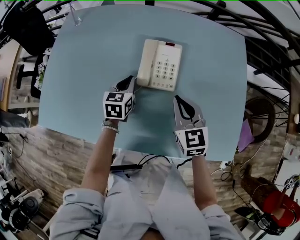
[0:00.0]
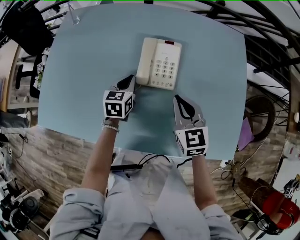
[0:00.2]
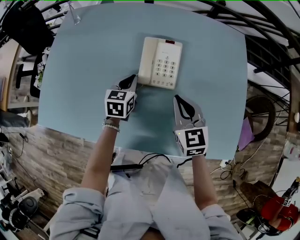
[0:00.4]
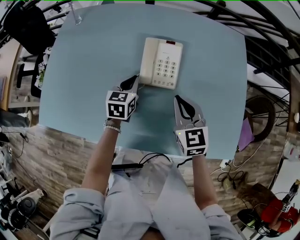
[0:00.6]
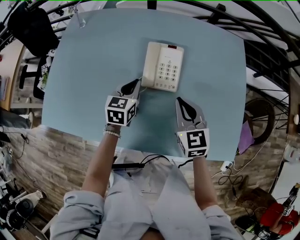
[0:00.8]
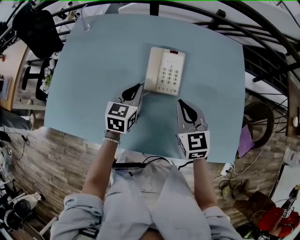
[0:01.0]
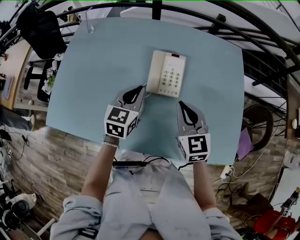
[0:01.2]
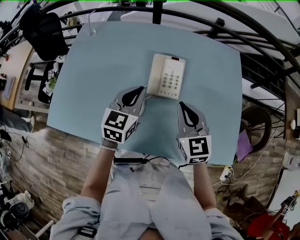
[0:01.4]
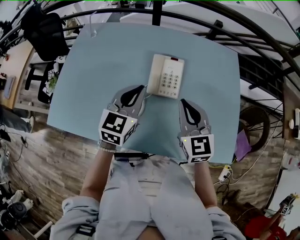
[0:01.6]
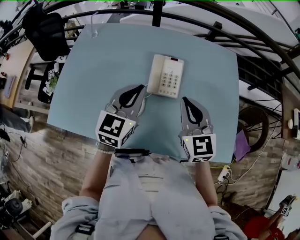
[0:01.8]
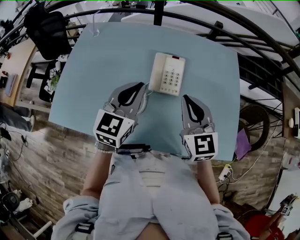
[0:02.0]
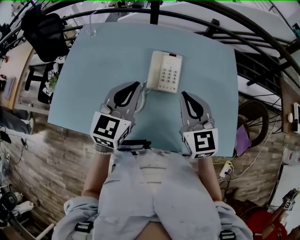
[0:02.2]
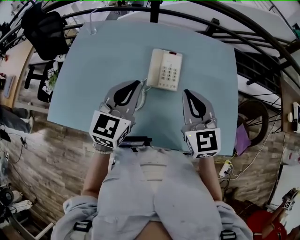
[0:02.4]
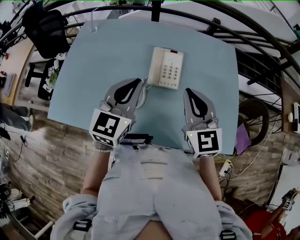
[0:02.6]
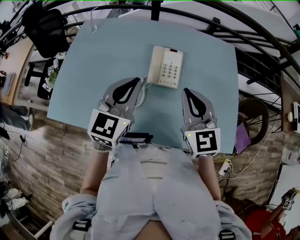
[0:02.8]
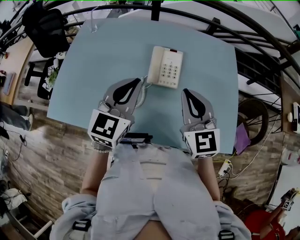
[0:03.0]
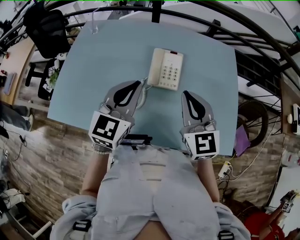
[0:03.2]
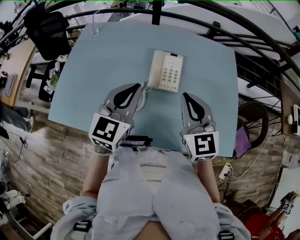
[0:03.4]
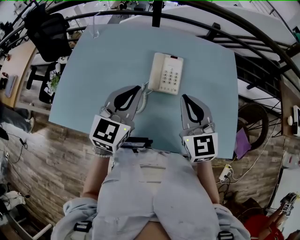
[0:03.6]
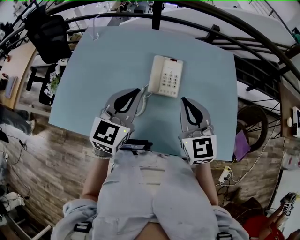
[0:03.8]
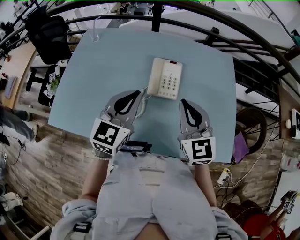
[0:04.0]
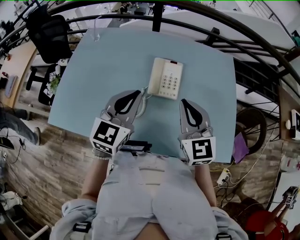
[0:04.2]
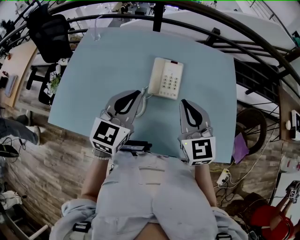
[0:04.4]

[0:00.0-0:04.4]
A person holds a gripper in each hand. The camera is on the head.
0:00.0 to 0:01.4: The right gripper shifts about 10 cm upward. The left gripper travels upward by about 15 cm.
0:01.4 to 0:03.0: The right gripper travels upward by approximately 10 cm, while the left gripper travels upward and backward by approximately 10 cm.
0:03.0 to 0:04.4: Both grippers stay put.

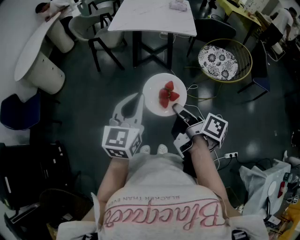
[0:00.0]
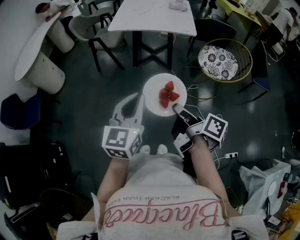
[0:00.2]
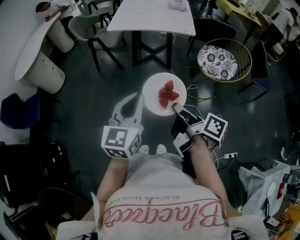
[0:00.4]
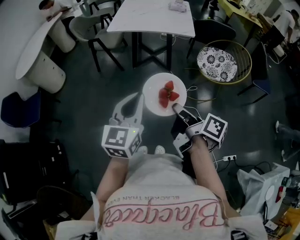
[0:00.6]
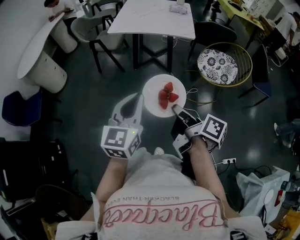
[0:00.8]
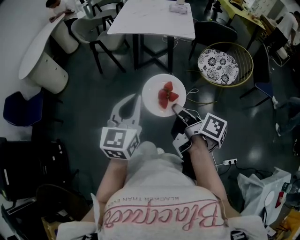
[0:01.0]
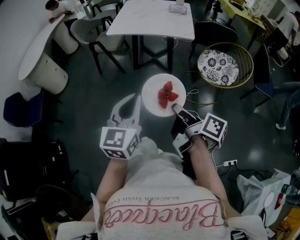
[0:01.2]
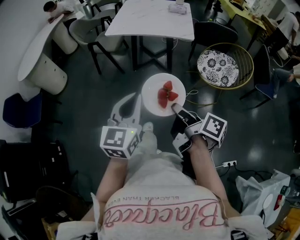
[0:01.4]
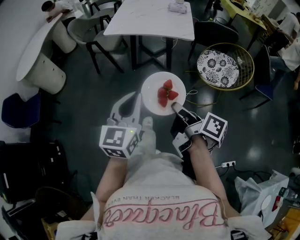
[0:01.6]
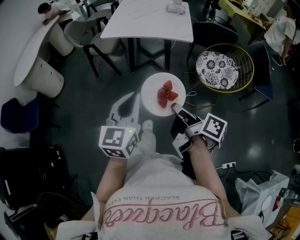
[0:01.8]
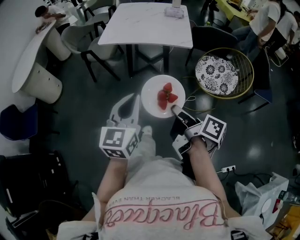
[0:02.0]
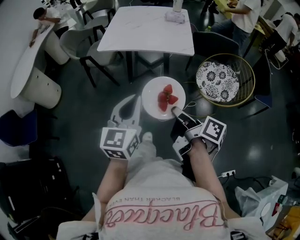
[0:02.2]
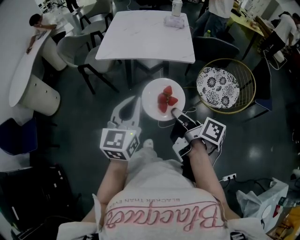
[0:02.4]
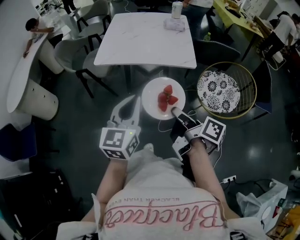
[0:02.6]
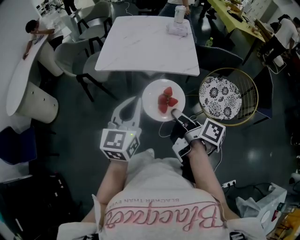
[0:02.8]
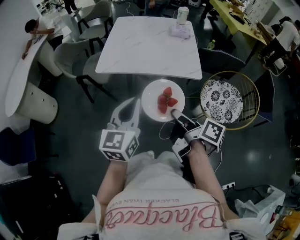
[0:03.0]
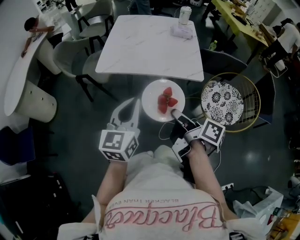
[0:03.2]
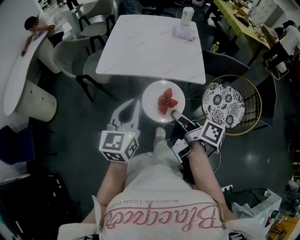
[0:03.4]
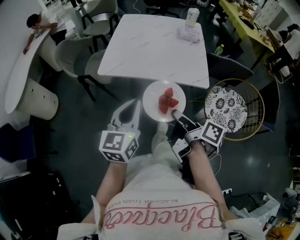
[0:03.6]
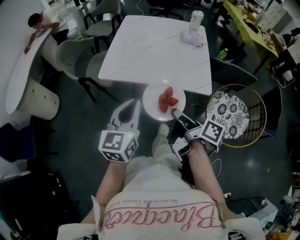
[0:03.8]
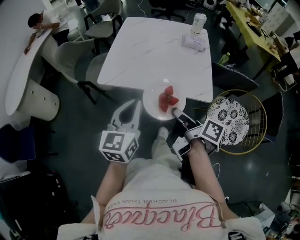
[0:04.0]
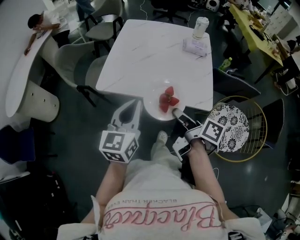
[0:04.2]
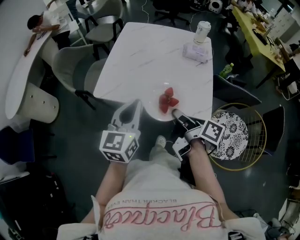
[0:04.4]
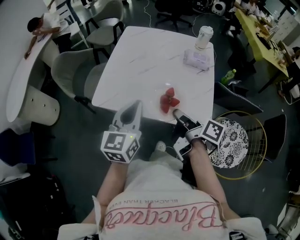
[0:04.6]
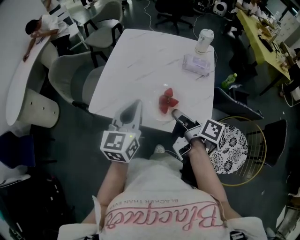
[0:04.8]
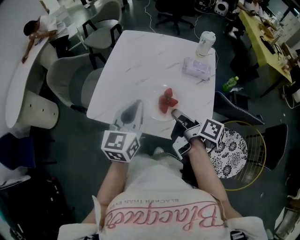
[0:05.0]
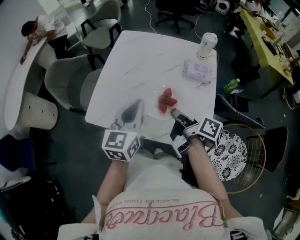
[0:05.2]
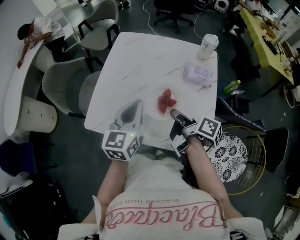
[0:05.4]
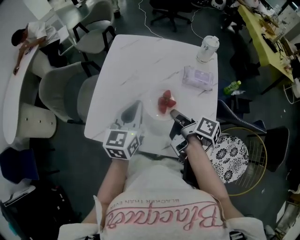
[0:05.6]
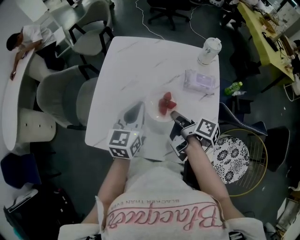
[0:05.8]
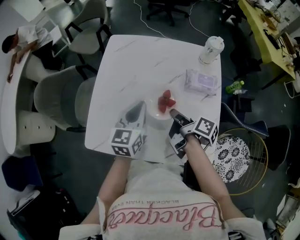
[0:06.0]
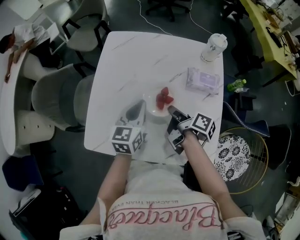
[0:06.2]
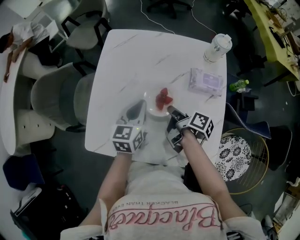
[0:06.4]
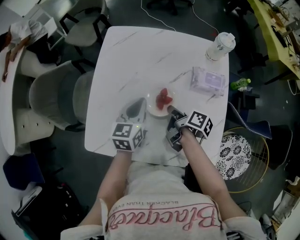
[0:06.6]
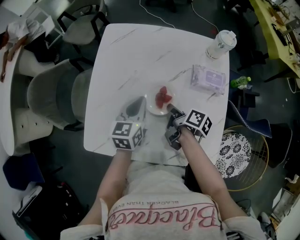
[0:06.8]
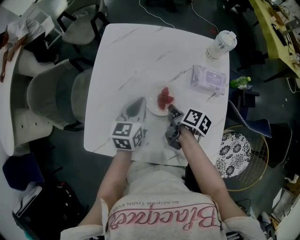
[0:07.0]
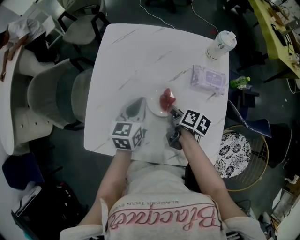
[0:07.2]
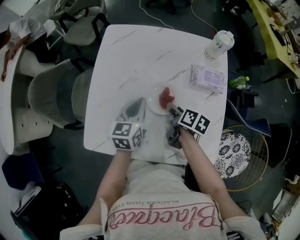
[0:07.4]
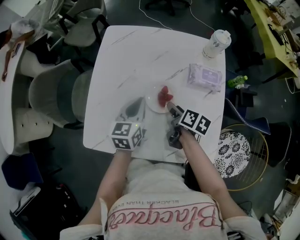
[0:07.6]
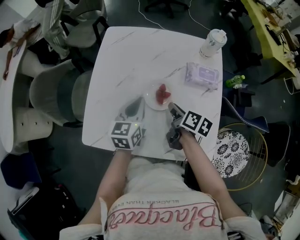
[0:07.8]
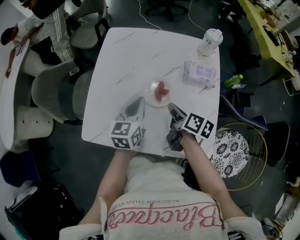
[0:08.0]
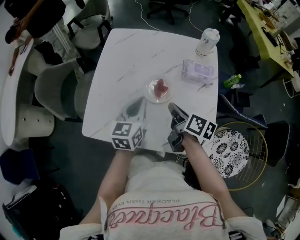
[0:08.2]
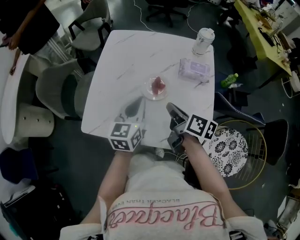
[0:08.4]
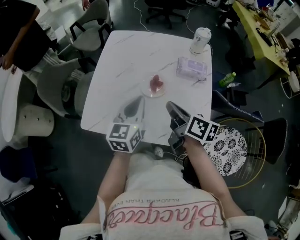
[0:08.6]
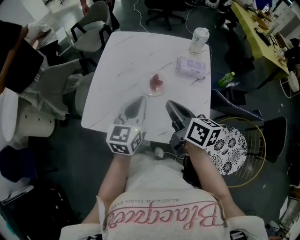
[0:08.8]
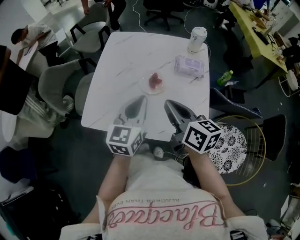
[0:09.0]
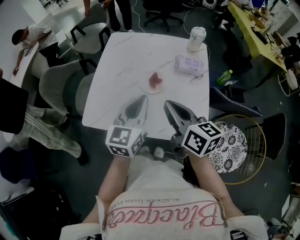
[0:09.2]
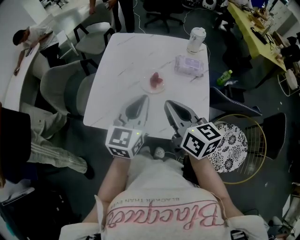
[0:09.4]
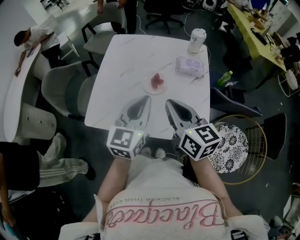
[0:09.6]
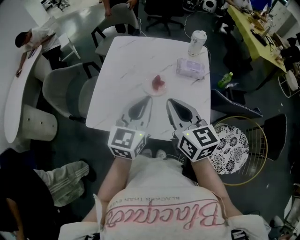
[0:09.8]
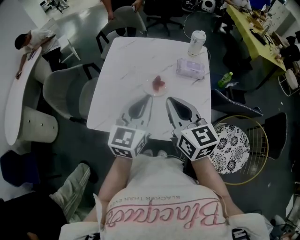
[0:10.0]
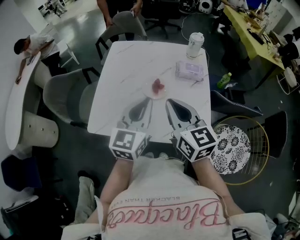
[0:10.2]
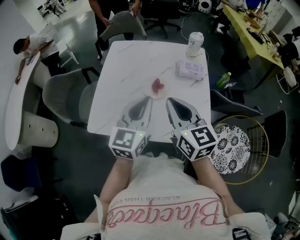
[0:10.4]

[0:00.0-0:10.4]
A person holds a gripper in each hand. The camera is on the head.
0:00.0 to 0:01.4: The left gripper shifts by about 10 cm.
0:01.4 to 0:03.0: The left gripper moves approximately 35 cm.
0:03.0 to 0:04.4: The left gripper changes place by about 25 cm.
0:04.4 to 0:06.0: The left gripper moves about 35 cm.
0:06.0 to 0:07.4: The left gripper travels downward by about 5 cm.
0:07.4 to 0:09.0: The left gripper ends up approximately 25 cm from where it was.

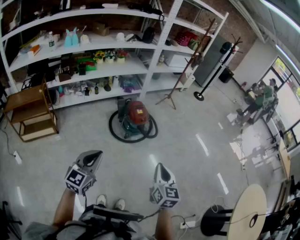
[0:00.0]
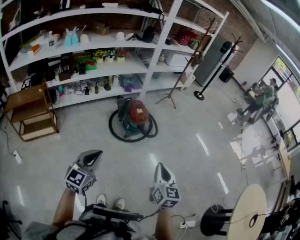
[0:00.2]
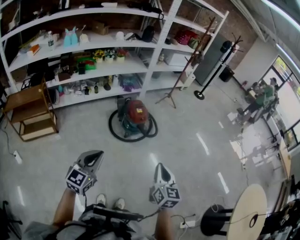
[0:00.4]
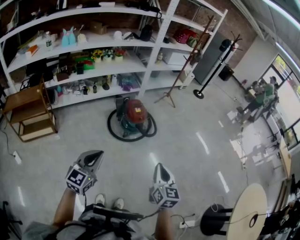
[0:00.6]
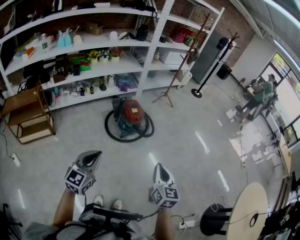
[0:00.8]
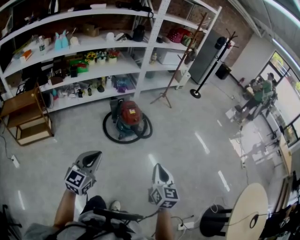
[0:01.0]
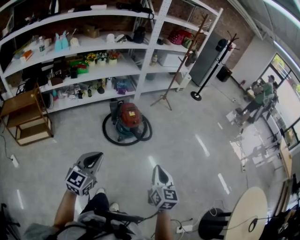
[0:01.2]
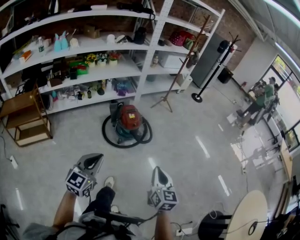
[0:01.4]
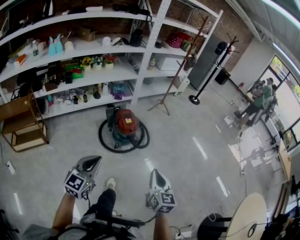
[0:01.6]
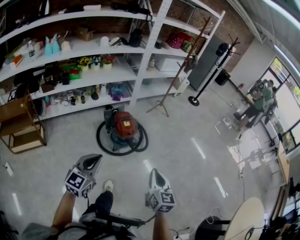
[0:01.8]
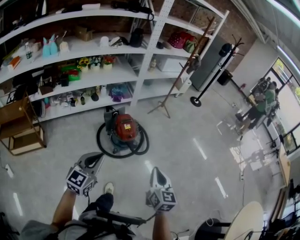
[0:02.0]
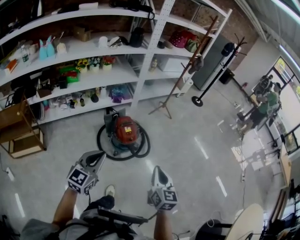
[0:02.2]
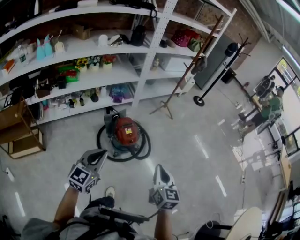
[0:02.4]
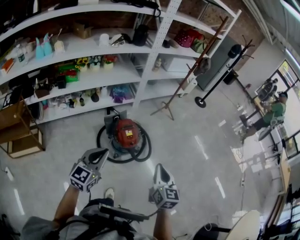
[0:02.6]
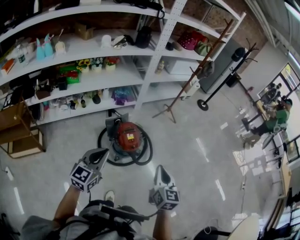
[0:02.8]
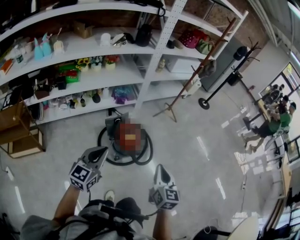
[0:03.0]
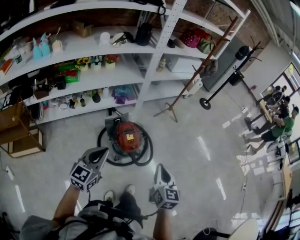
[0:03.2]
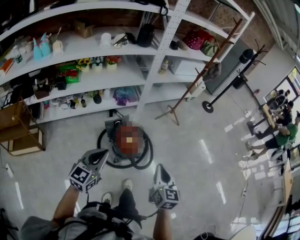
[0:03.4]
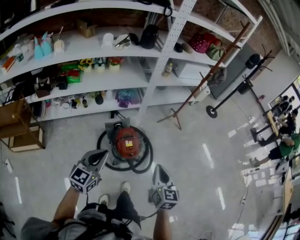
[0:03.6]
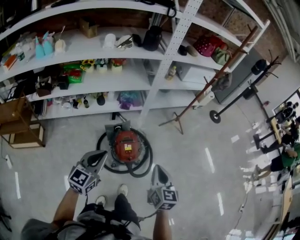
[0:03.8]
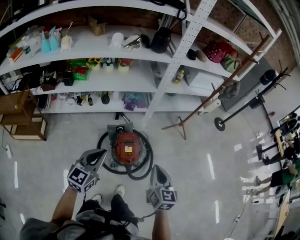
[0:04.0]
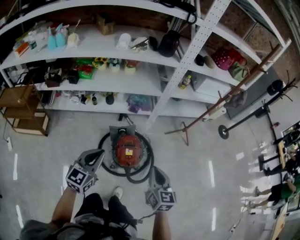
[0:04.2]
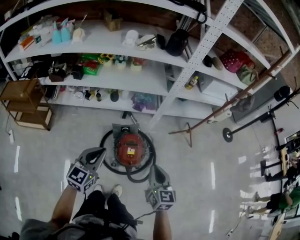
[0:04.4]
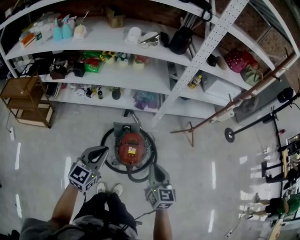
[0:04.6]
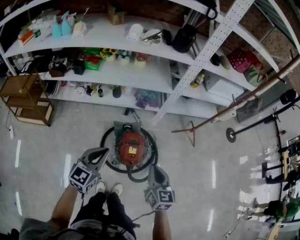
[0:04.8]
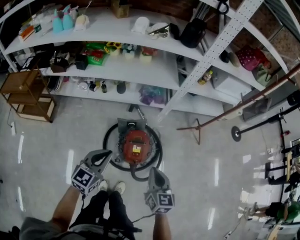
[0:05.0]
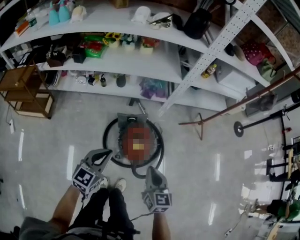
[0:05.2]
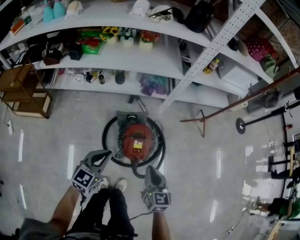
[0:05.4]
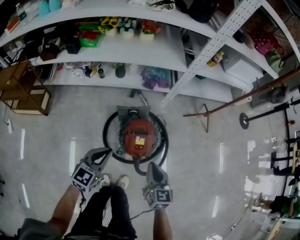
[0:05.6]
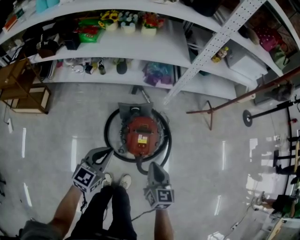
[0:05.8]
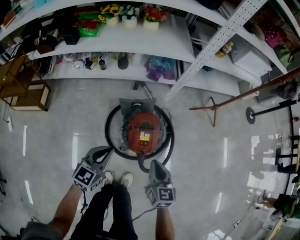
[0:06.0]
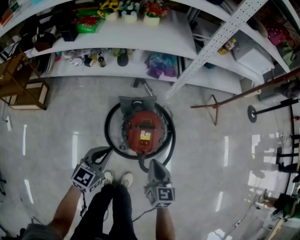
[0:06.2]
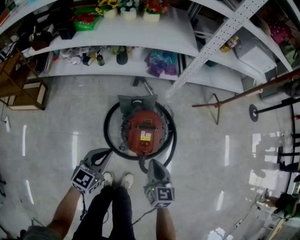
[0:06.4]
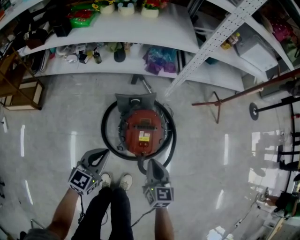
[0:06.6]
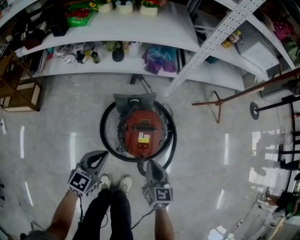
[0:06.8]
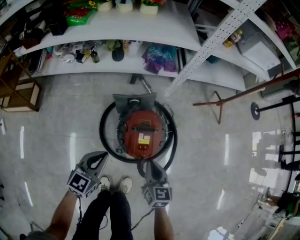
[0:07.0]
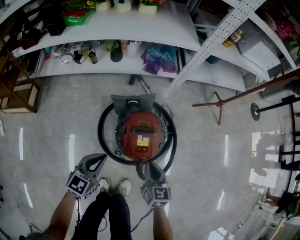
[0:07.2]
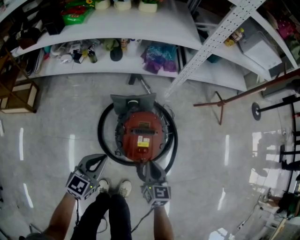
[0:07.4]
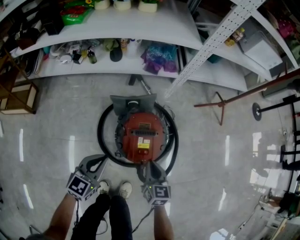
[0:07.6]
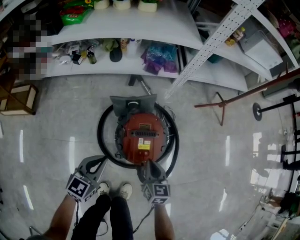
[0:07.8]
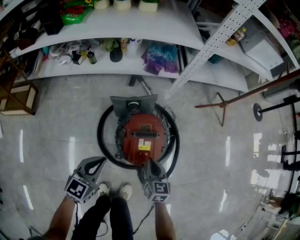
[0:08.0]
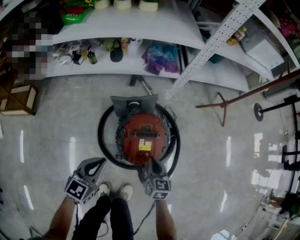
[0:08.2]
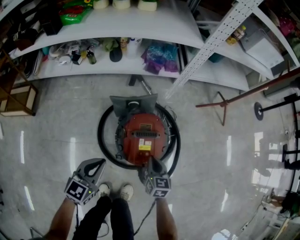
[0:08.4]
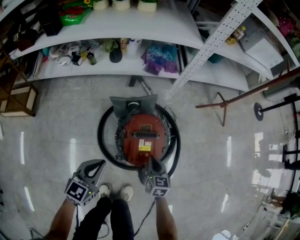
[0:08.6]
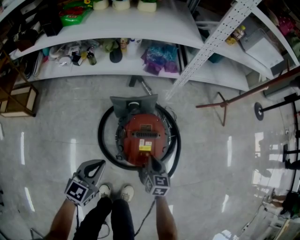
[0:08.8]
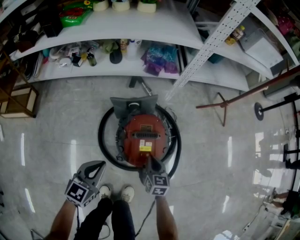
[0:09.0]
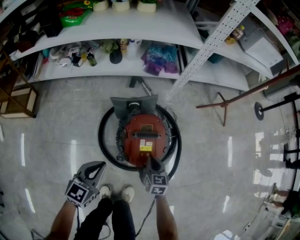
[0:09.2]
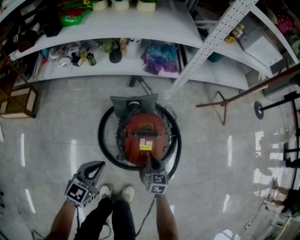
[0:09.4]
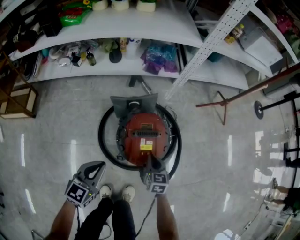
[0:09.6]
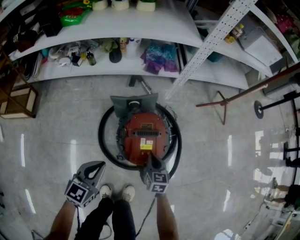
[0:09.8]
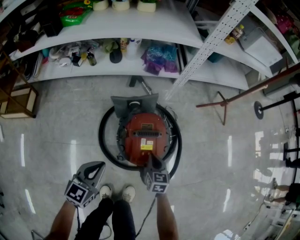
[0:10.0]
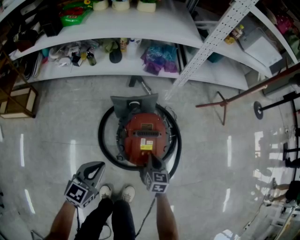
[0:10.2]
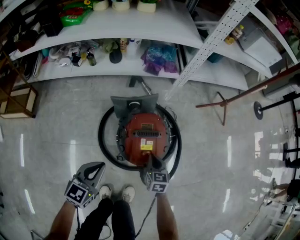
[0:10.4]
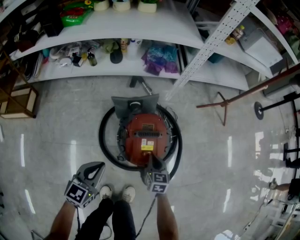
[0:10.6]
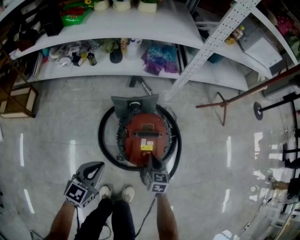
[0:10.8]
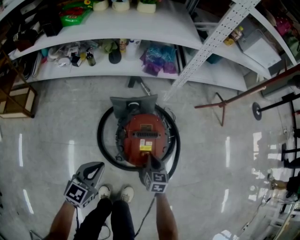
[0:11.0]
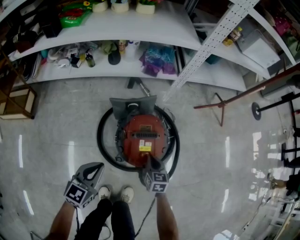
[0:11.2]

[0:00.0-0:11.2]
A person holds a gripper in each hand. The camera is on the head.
0:00.0 to 0:01.6: Both grippers move forward and to the right, roughly 15 cm.
0:01.6 to 0:03.2: The two grippers go some 35 cm forward.
0:03.2 to 0:04.8: Both grippers move forward, roughly 20 cm. The right gripper swivels roughly 30 degrees.
0:04.8 to 0:06.4: Both grippers move downward, approximately 30 cm.
0:06.4 to 0:08.0: The right gripper heads downward, covering approximately 20 cm. Meanwhile the left gripper goes about 10 cm downward.
0:08.0 to 0:09.6: The right gripper shifts about 5 cm downward.
0:09.6 to 0:11.2: The grippers move only a little.
